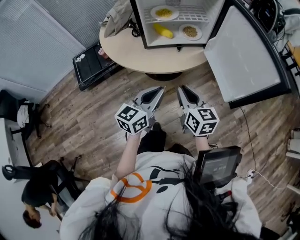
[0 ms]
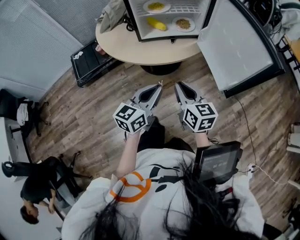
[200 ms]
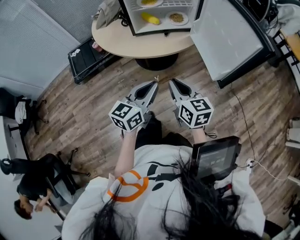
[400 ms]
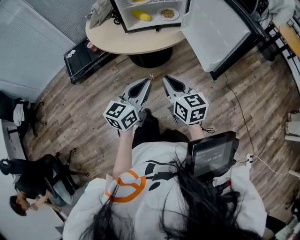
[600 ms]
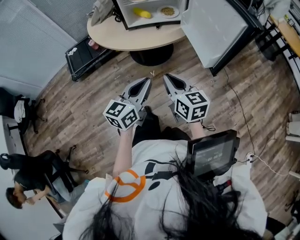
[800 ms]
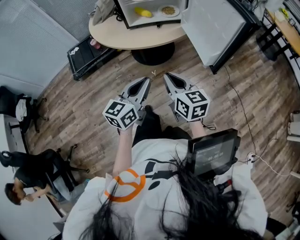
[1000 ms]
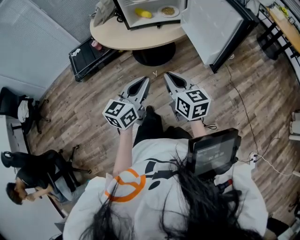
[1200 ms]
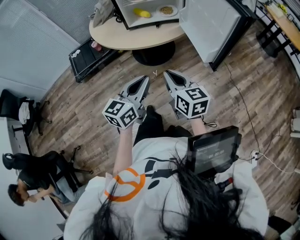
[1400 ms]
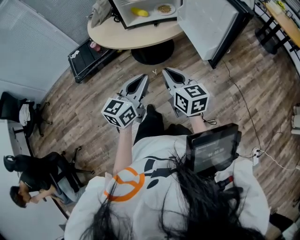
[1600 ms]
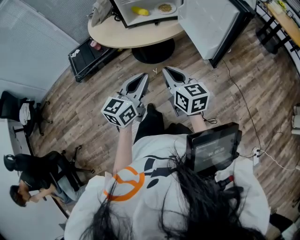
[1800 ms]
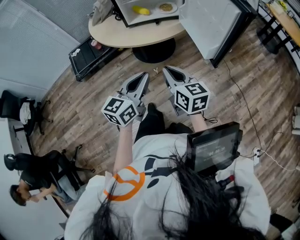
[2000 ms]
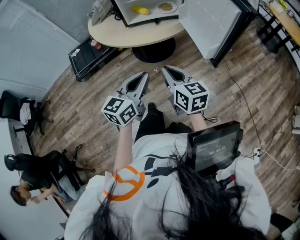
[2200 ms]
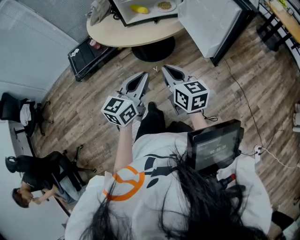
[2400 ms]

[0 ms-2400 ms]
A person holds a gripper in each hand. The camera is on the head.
0 ms to 1200 ms: Both grippers move backward and to the right, approximately 15 cm.
1200 ms to 2400 ms: Both grippers stay about where they are.

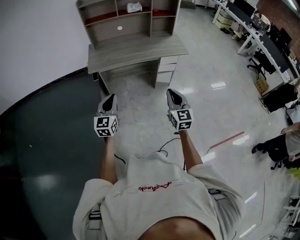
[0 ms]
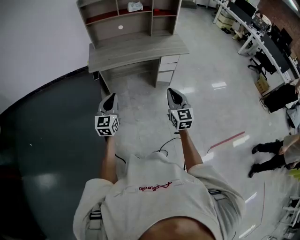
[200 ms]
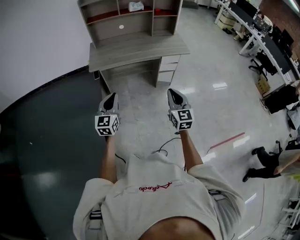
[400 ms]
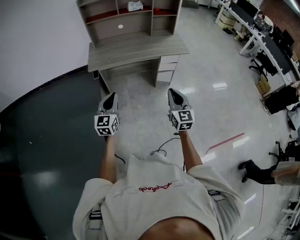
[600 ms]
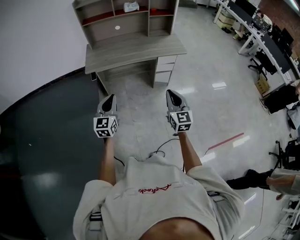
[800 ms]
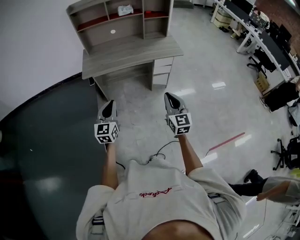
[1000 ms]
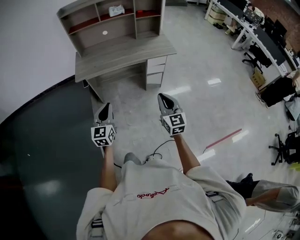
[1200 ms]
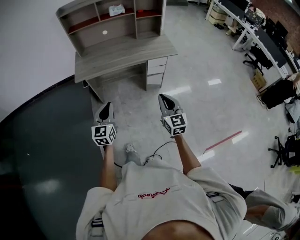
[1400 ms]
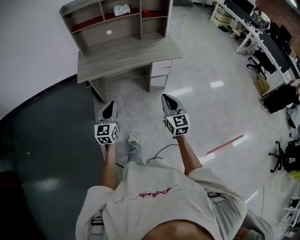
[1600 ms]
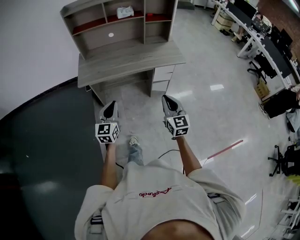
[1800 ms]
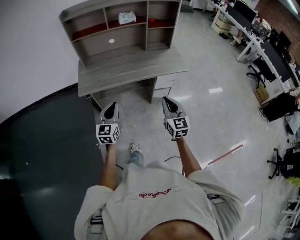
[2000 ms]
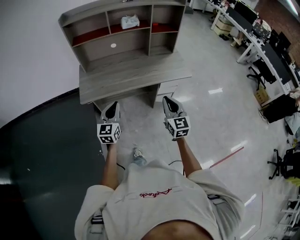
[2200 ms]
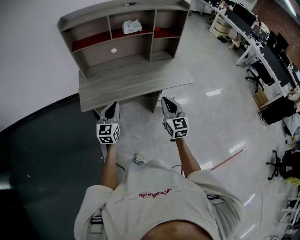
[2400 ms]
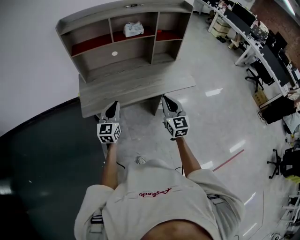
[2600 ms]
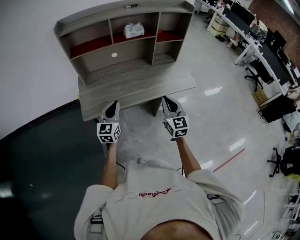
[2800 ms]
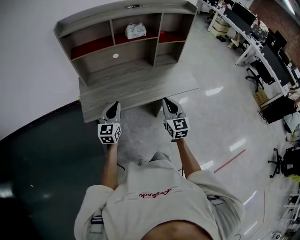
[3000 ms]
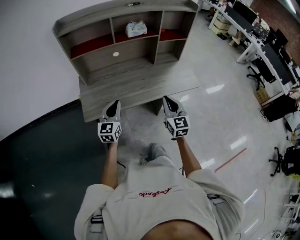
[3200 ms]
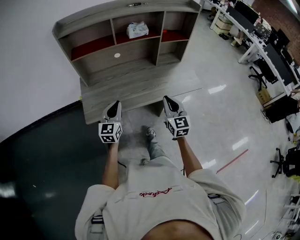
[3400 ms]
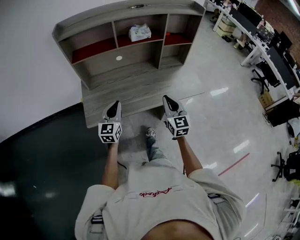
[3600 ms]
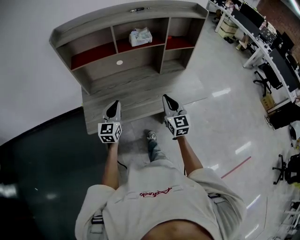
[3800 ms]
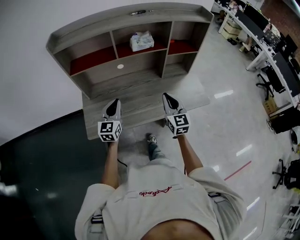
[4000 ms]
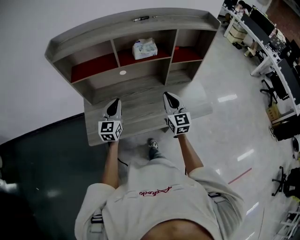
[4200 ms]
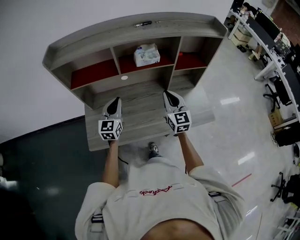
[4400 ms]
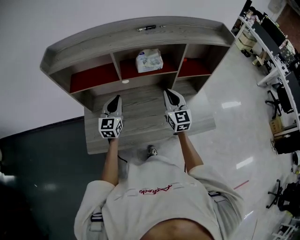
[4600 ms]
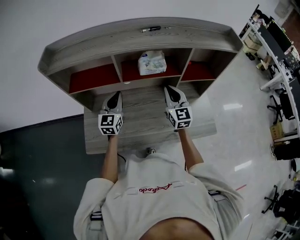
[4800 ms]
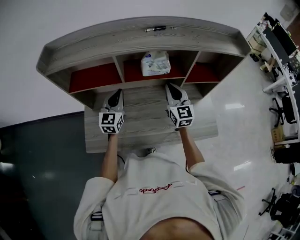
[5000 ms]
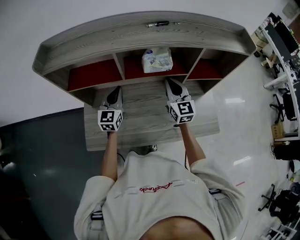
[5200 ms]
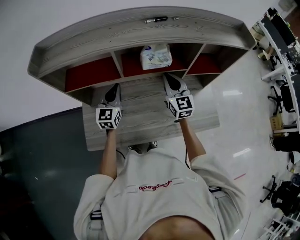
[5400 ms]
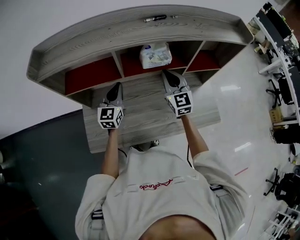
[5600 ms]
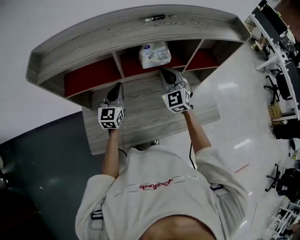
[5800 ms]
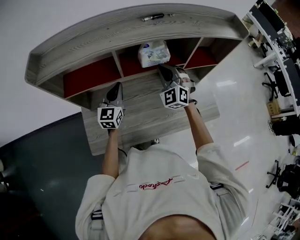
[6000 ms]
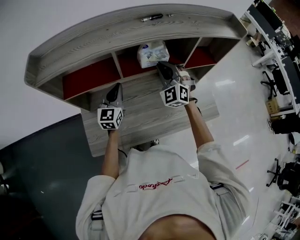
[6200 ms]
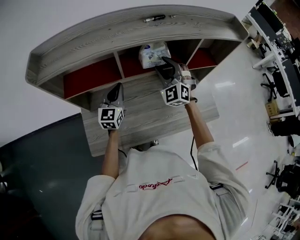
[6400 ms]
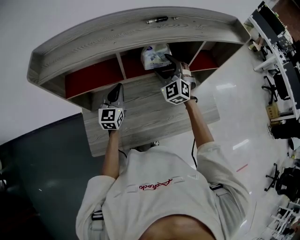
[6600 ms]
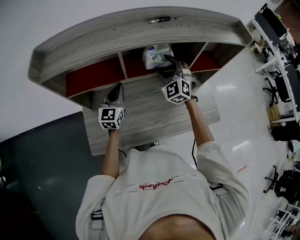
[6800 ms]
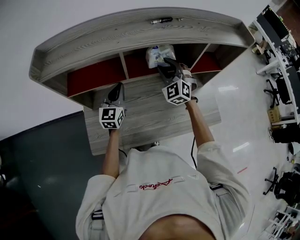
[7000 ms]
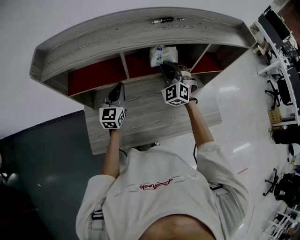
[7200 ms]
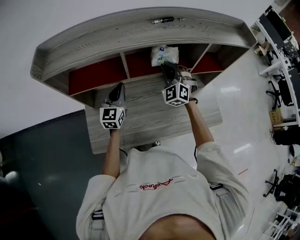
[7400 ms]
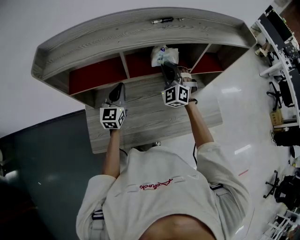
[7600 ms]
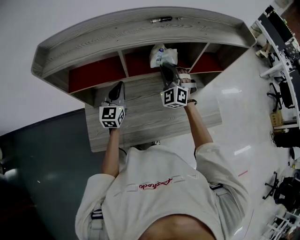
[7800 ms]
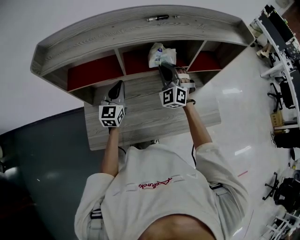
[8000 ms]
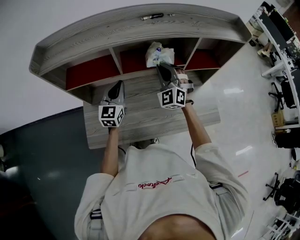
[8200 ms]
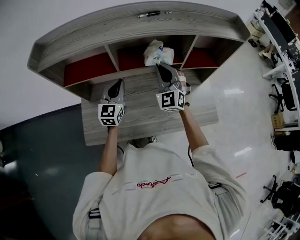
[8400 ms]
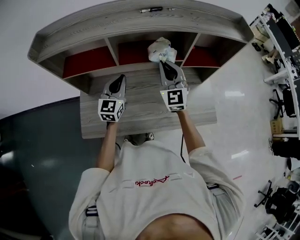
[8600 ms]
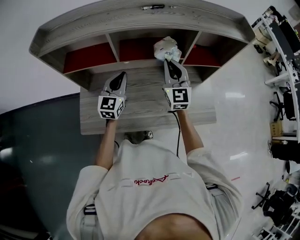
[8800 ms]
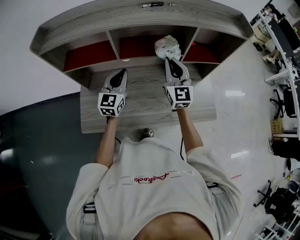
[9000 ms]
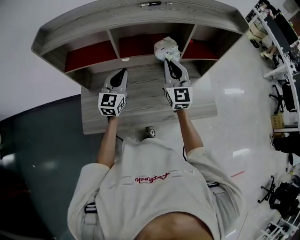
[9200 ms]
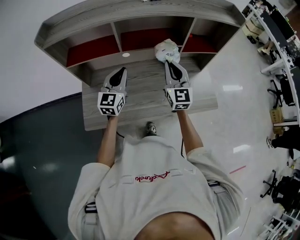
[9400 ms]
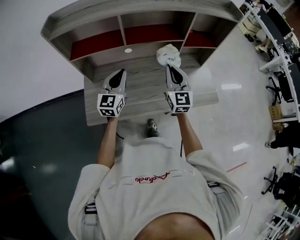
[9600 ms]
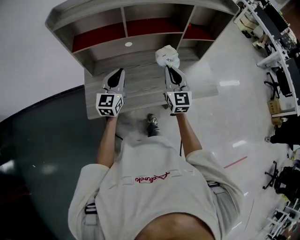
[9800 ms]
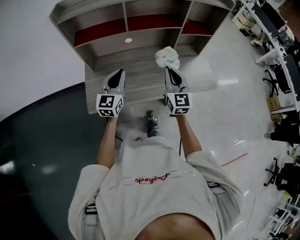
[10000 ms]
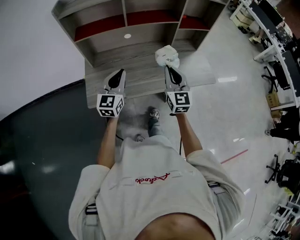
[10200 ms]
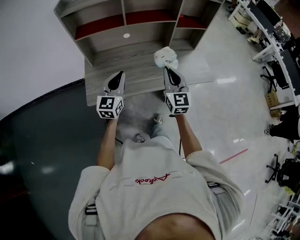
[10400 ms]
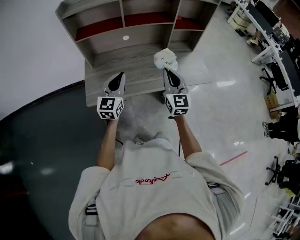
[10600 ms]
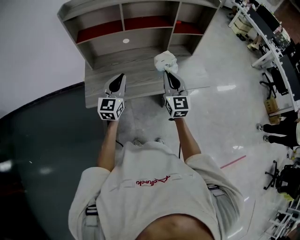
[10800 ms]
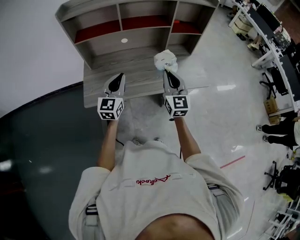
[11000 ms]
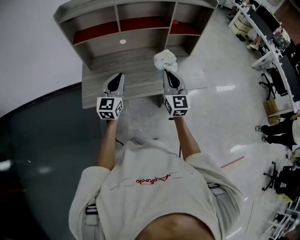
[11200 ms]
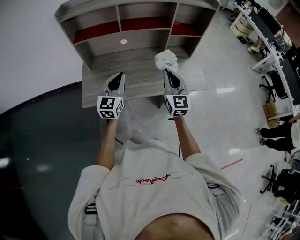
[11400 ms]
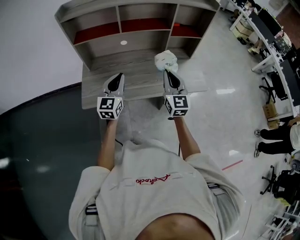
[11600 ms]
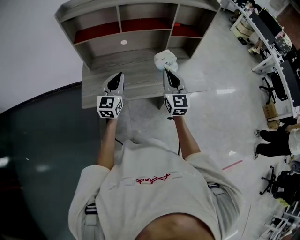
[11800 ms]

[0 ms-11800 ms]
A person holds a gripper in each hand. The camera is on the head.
0 ms to 1400 ms: The two grippers go roughly 10 cm to the right.
1400 ms to 3000 ms: The right gripper heads forward and to the left, covering some 35 cm, while the left gripper heads forward, covering some 35 cm.
3000 ms to 4400 ms: The two grippers go approximately 30 cm forward.
4400 ms to 6000 ms: The grippers both shift forward by about 15 cm. The right gripper rolls counterclockwise, seen from behind, by some 50 degrees.
6000 ms to 7400 ms: The right gripper opens and closes again.
7400 ms to 8800 ms: The right gripper shifts some 10 cm backward, to the right and upward, and rolls clockwise, seen from behind, by about 40 degrees; the left gripper shifts approximately 5 cm to the right.
8800 ms to 10400 ms: The grippers both shift backward by about 30 cm.
10400 ms to 11800 ms: The two grippers go about 10 cm forward.

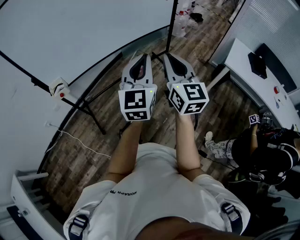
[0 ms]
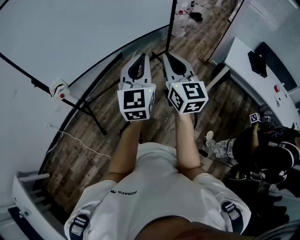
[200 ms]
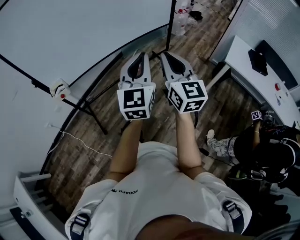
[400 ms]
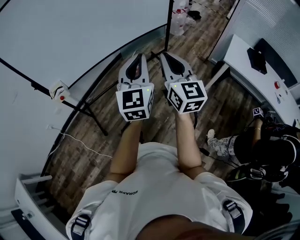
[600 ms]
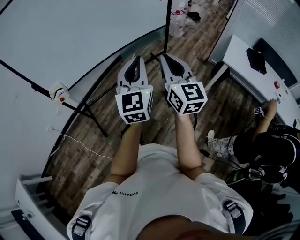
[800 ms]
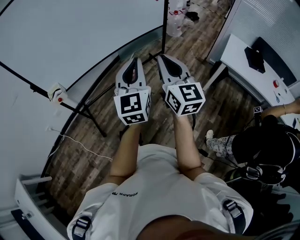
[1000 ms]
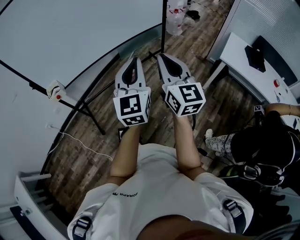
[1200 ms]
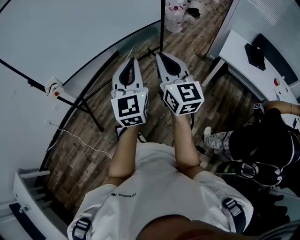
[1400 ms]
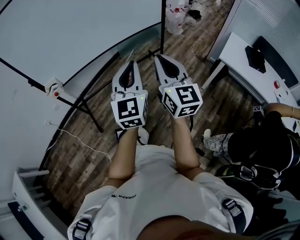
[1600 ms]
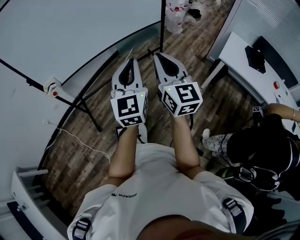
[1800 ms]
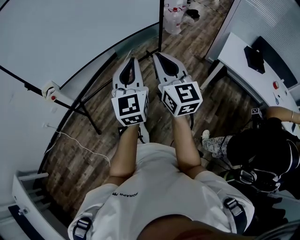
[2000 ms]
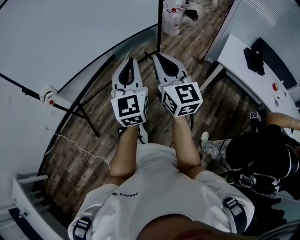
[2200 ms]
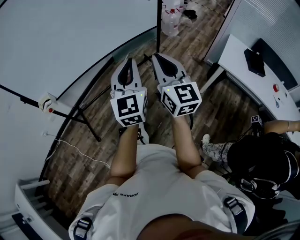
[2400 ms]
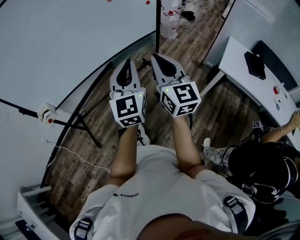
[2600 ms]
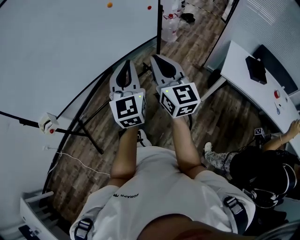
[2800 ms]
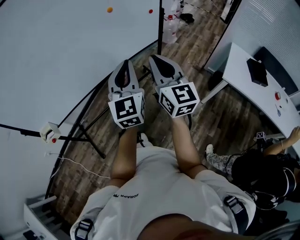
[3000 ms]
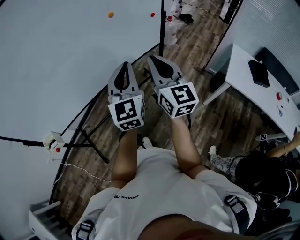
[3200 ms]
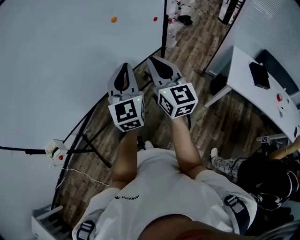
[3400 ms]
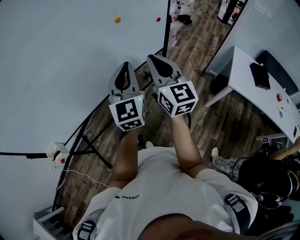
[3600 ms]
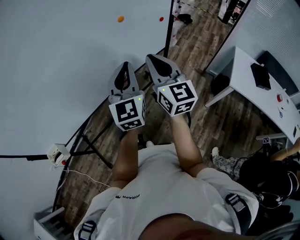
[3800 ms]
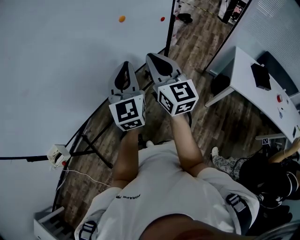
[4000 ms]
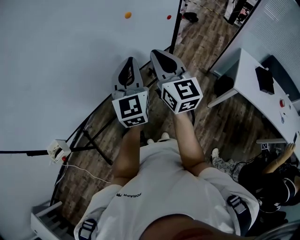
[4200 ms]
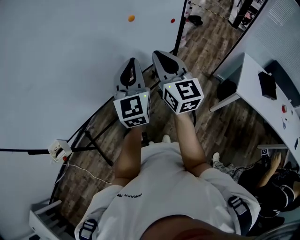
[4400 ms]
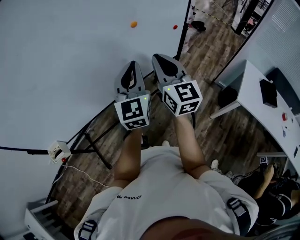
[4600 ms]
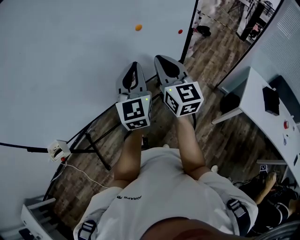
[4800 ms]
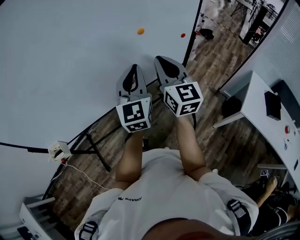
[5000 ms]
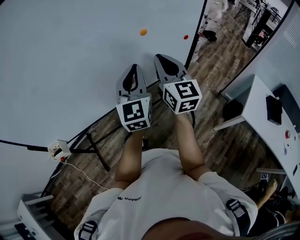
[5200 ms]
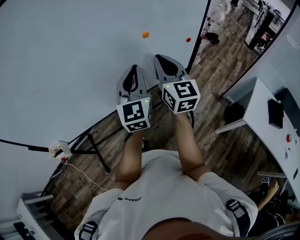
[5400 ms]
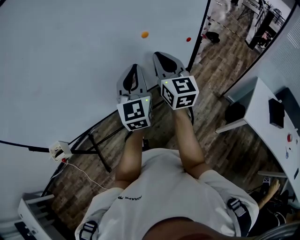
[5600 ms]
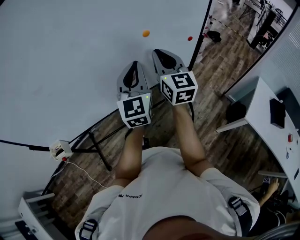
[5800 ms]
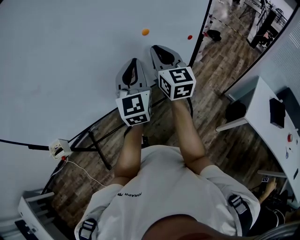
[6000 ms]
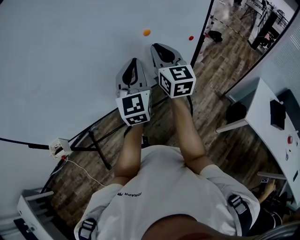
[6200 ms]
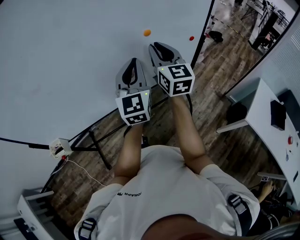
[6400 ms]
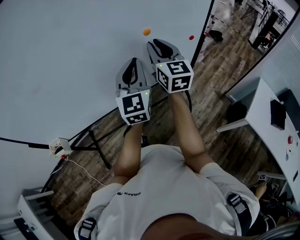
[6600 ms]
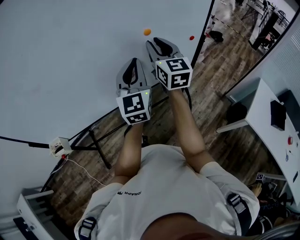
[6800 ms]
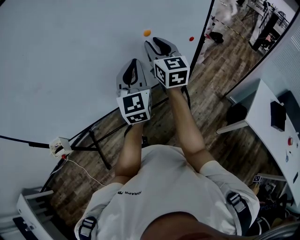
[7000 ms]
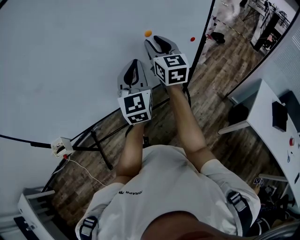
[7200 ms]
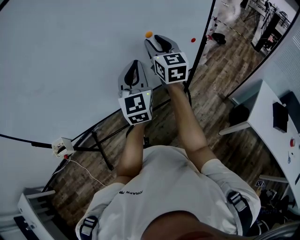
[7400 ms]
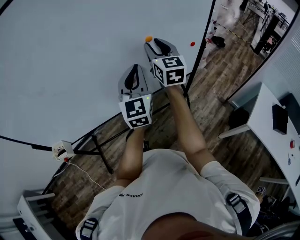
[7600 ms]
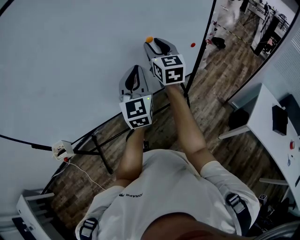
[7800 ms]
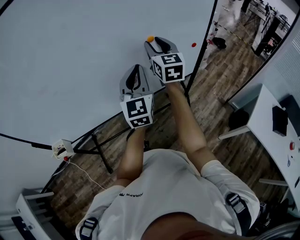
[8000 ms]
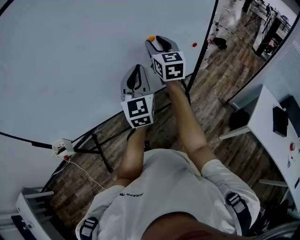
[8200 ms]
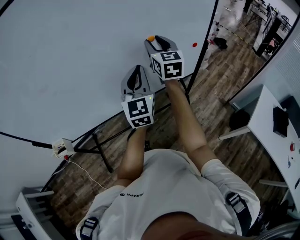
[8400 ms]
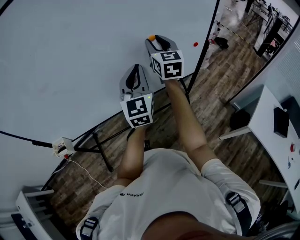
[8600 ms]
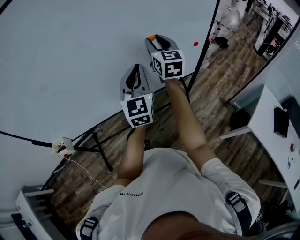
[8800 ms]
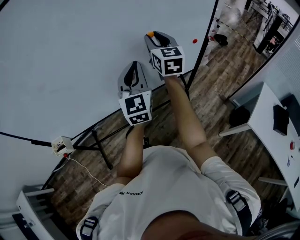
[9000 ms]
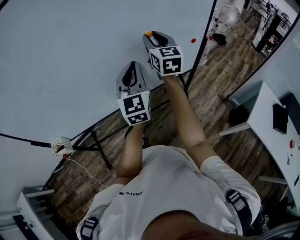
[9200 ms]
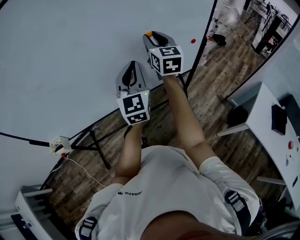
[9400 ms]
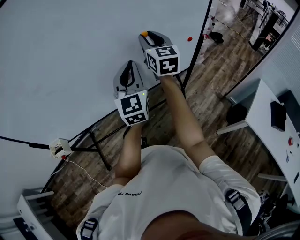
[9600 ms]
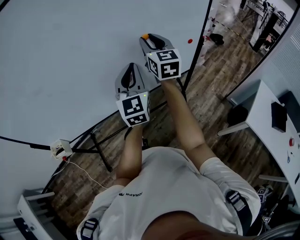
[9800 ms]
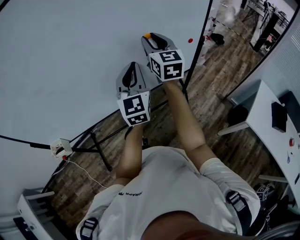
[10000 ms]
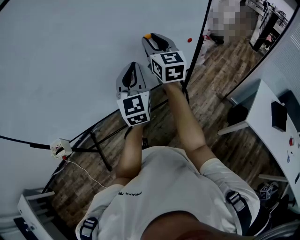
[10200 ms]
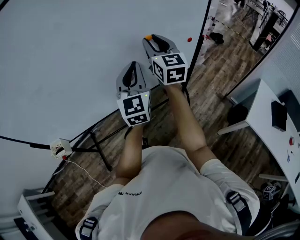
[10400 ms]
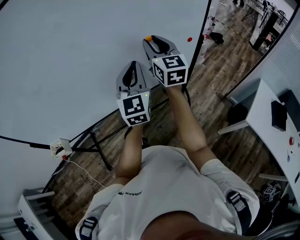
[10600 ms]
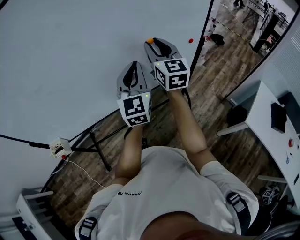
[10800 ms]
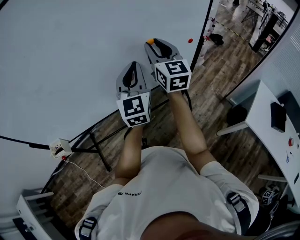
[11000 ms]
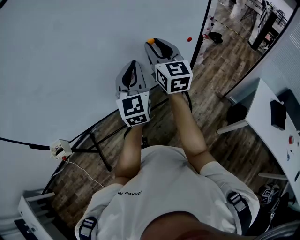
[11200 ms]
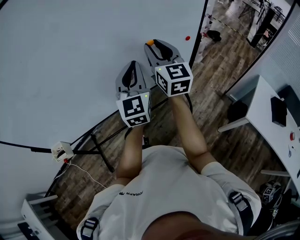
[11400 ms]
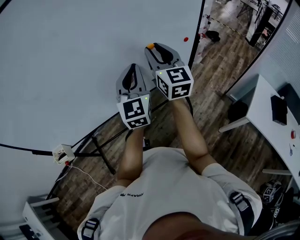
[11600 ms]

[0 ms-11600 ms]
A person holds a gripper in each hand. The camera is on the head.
0 ms to 1400 ms: The grippers both shift to the right by roughly 5 cm.
1400 ms to 2800 ms: Both grippers travel together forward, about 20 cm.
2800 ms to 4400 ms: Both grippers move forward, some 20 cm.
4400 ms to 5800 ms: The right gripper moves forward, approximately 10 cm. The left gripper is displaced forward by approximately 5 cm.
5800 ms to 7200 ms: The right gripper travels forward by about 5 cm, and opens up.
7200 ms to 10200 ms: The grippers move only a little.
10200 ms to 11600 ms: The right gripper shifts about 5 cm backward.
